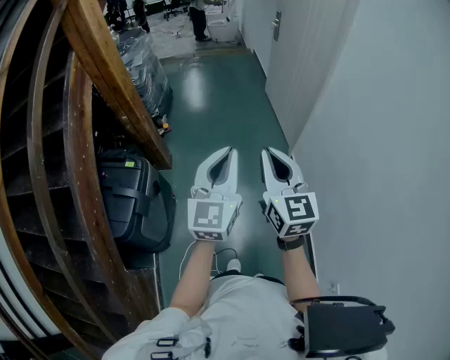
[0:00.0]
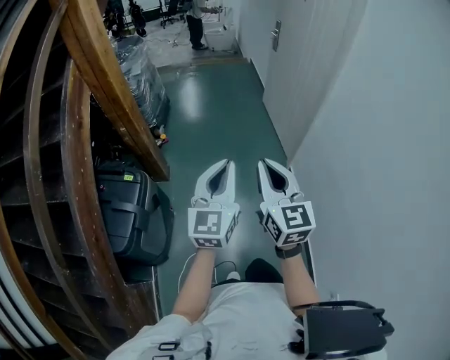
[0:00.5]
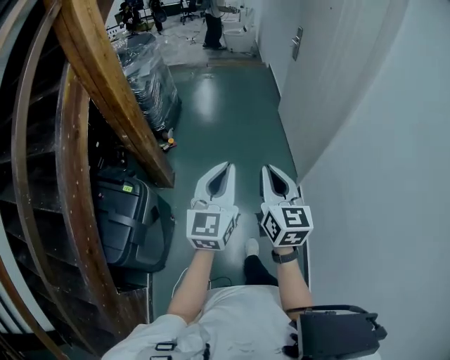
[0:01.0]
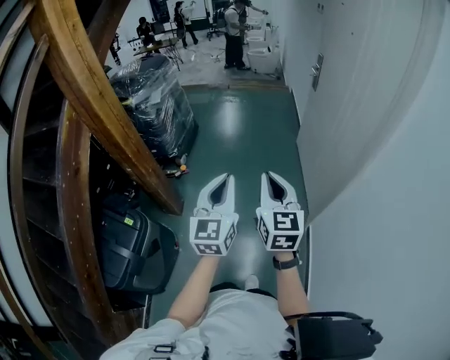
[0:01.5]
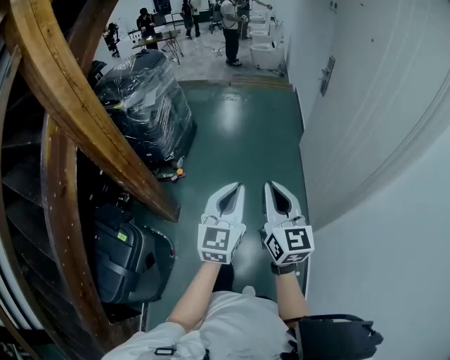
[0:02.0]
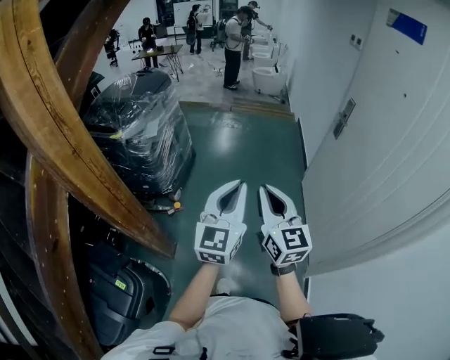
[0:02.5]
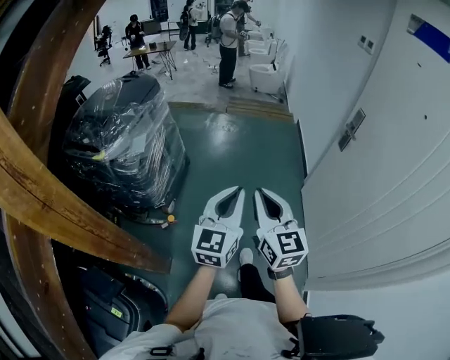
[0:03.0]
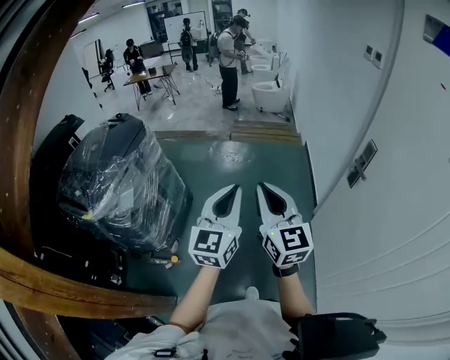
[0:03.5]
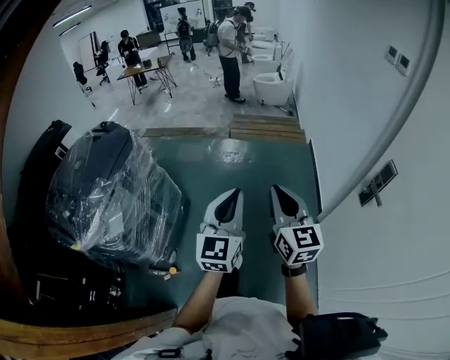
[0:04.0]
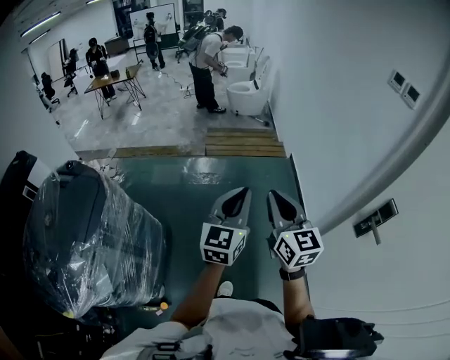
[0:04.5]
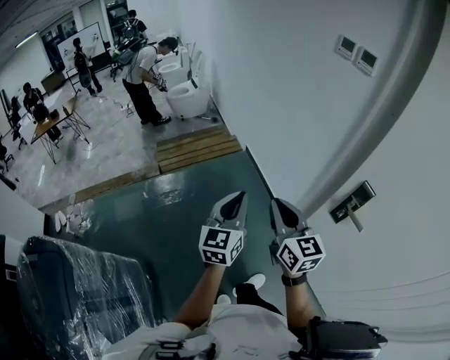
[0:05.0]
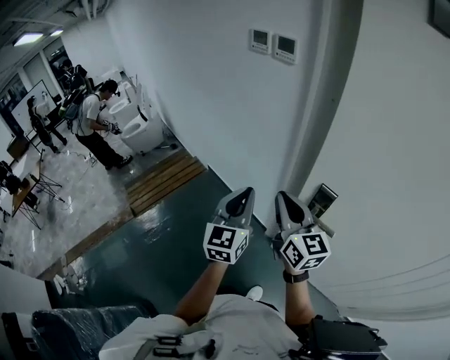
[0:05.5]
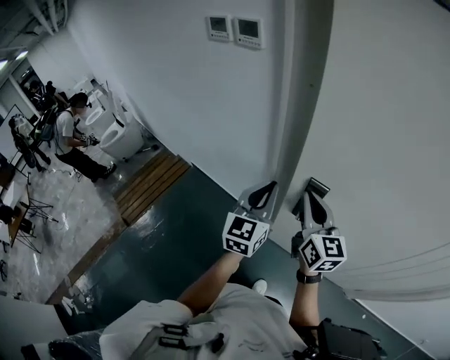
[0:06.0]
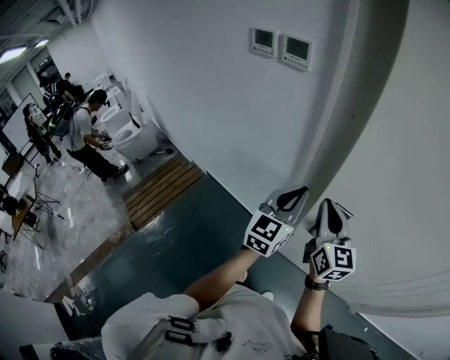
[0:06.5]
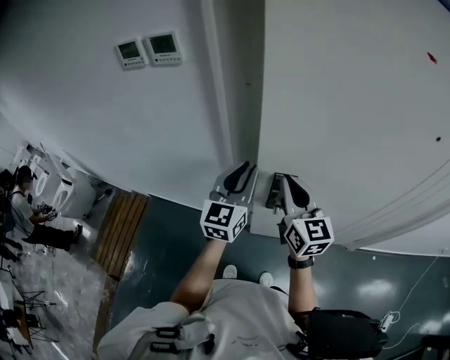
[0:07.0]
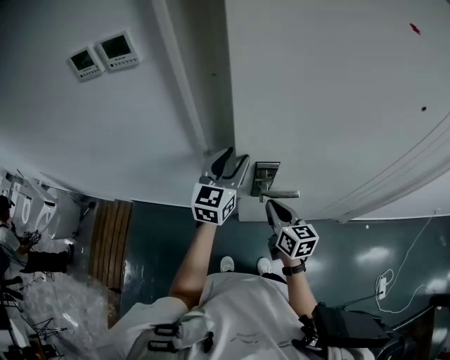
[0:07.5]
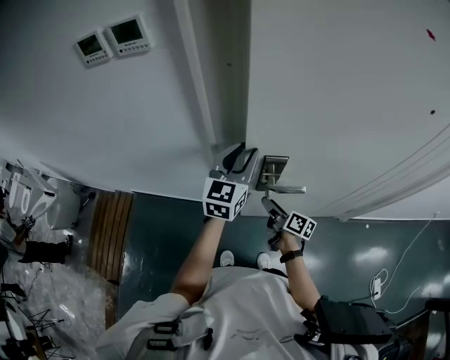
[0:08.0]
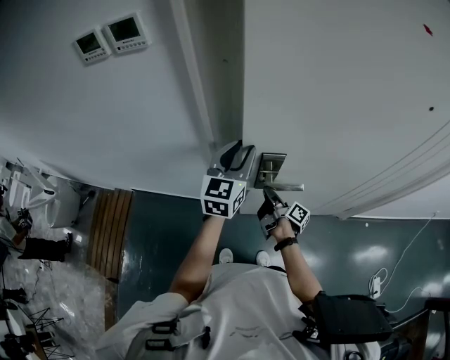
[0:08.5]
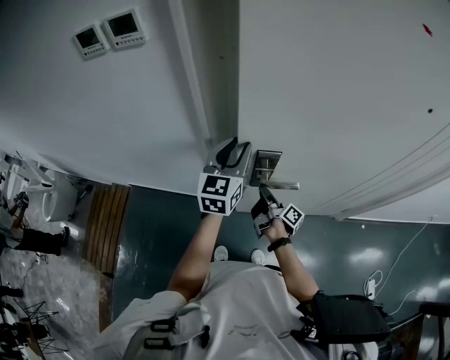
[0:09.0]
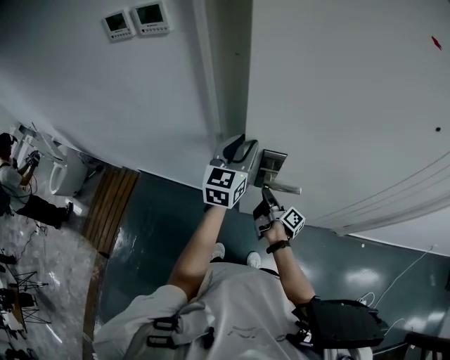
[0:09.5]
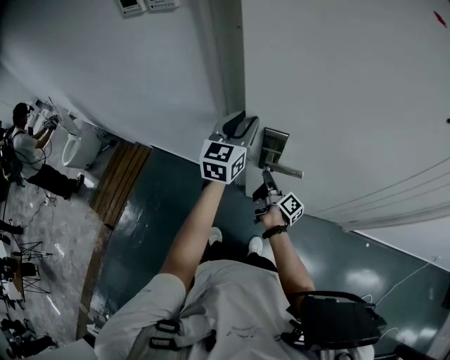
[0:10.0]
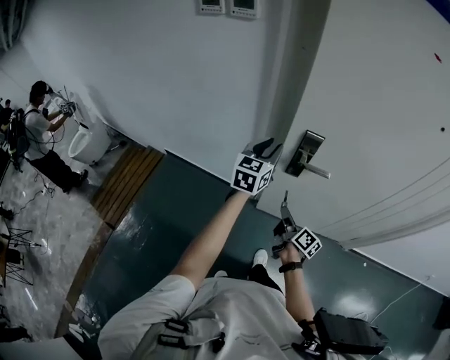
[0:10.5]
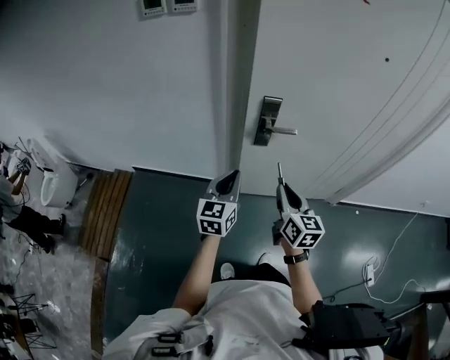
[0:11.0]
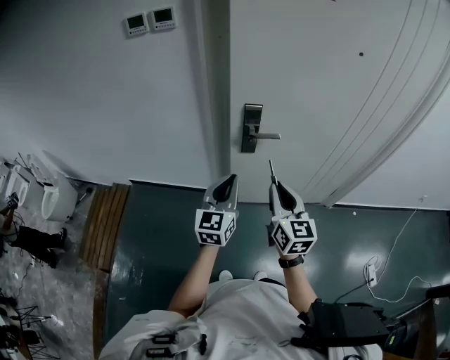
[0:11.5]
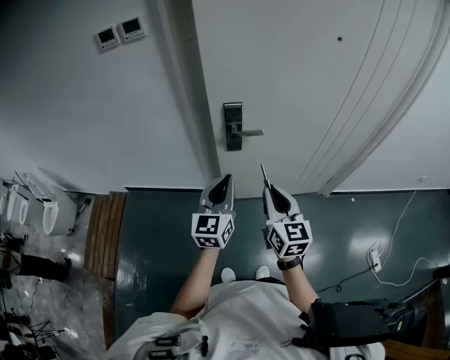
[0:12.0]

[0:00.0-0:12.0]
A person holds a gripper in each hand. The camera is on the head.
0:00.0 to 0:02.0: The pair of grippers is taken forward, about 50 cm.
0:02.0 to 0:04.0: The two grippers travel together, forward, approximately 70 cm.
0:04.0 to 0:06.0: The two grippers travel together, roughly 50 cm. The left gripper turns by approximately 70 degrees. Meanwhile the right gripper rotates some 60 degrees.
0:06.0 to 0:08.0: The left gripper heads forward and to the right, covering approximately 10 cm, changes its angle by approximately 30 degrees, and opens up. Meanwhile the right gripper goes some 25 cm downward, rolls clockwise, seen from behind, by roughly 50 degrees, and opens its fingers.
0:08.0 to 0:10.0: The right gripper changes its angle by some 20 degrees, and closes up.
0:10.0 to 0:12.0: The right gripper moves backward and upward, approximately 35 cm, and rotates around the line of its fingers by roughly 80 degrees, counterclockwise from behind, while the left gripper shifts some 30 cm backward, and closes up.

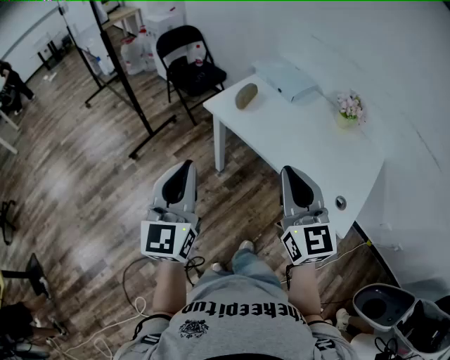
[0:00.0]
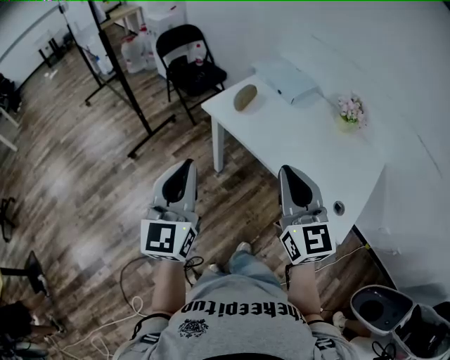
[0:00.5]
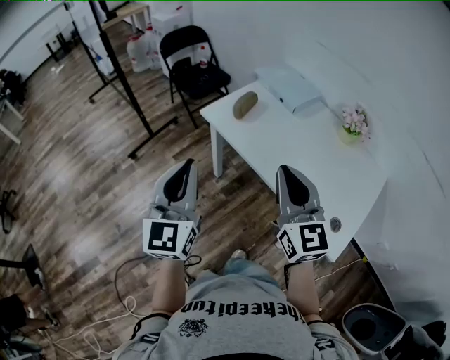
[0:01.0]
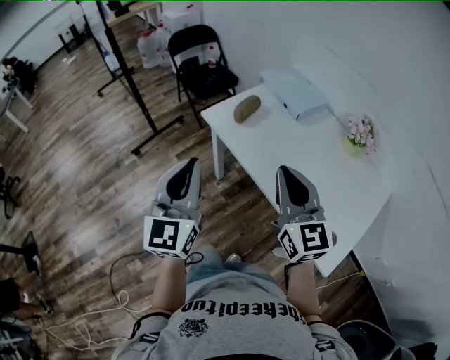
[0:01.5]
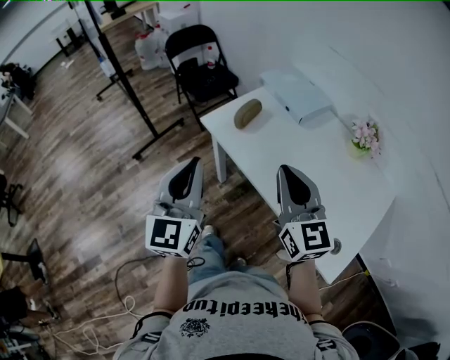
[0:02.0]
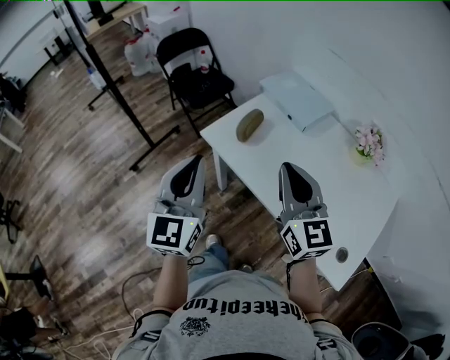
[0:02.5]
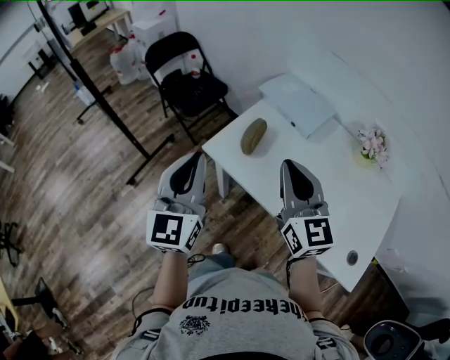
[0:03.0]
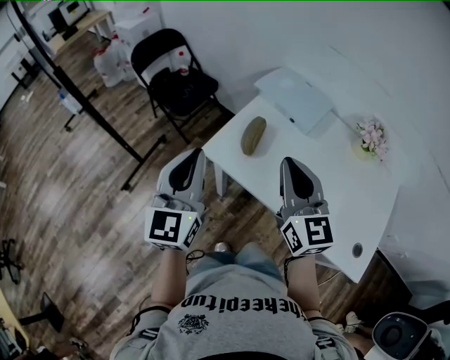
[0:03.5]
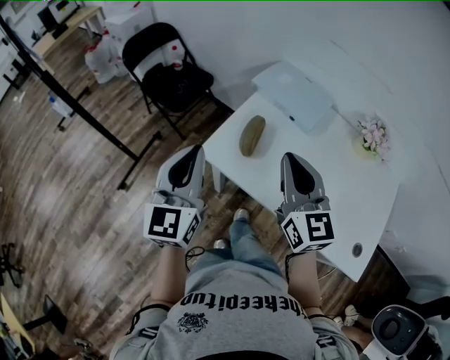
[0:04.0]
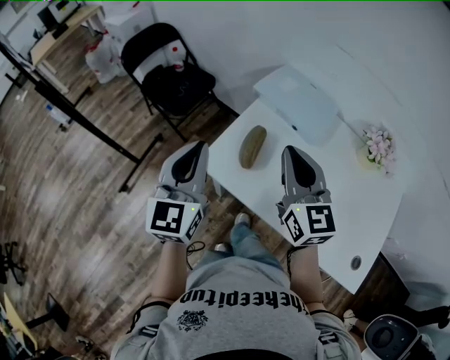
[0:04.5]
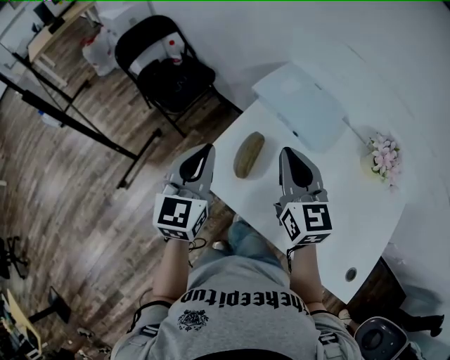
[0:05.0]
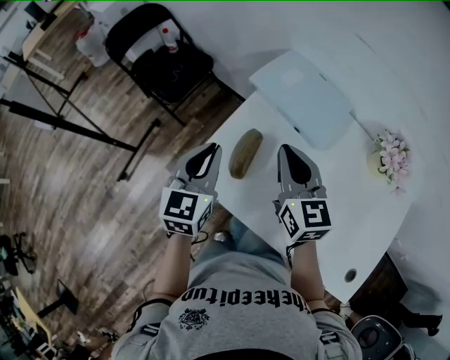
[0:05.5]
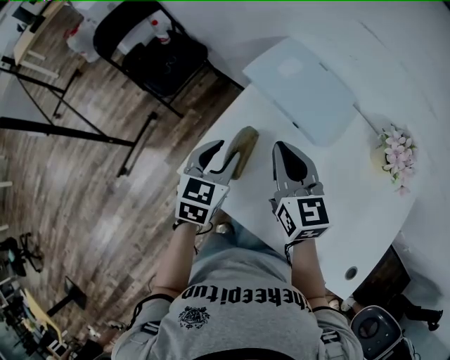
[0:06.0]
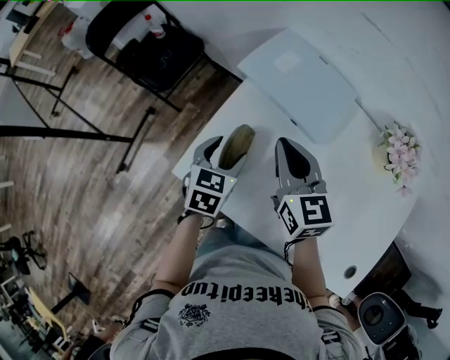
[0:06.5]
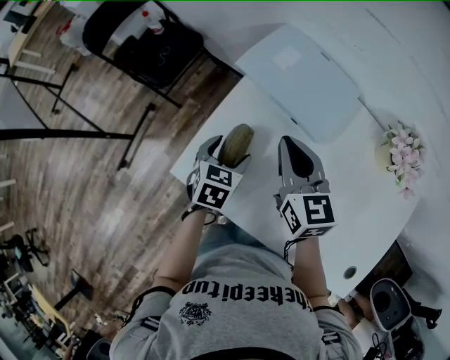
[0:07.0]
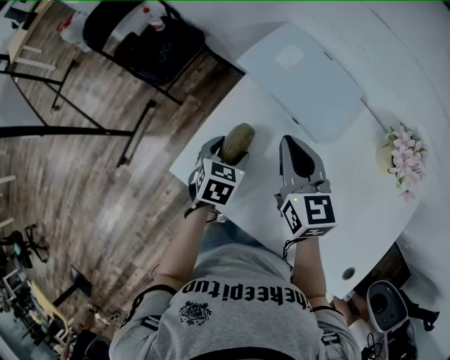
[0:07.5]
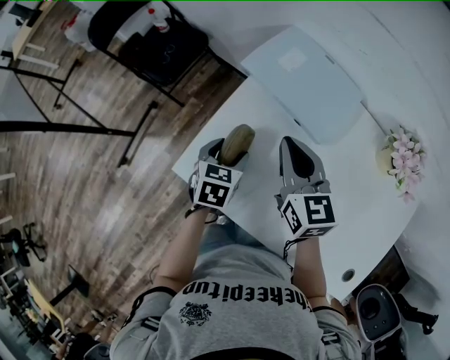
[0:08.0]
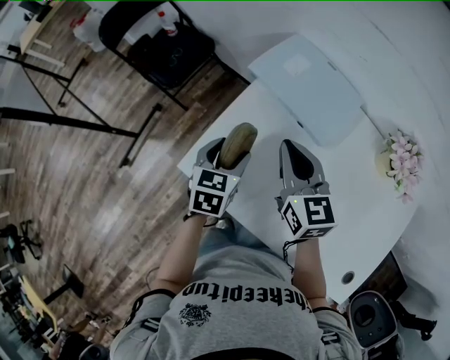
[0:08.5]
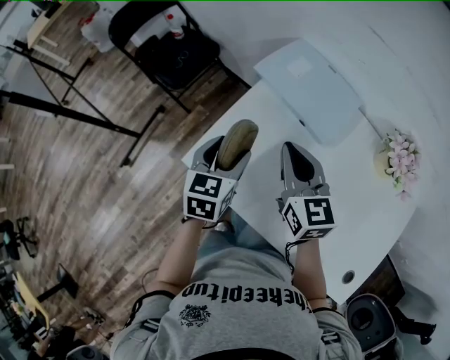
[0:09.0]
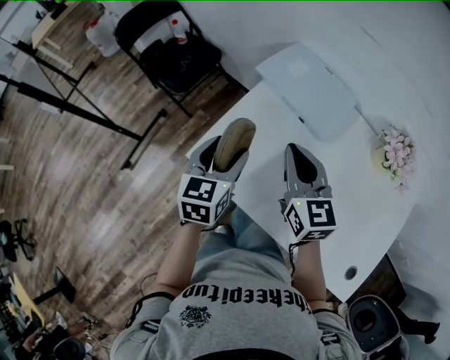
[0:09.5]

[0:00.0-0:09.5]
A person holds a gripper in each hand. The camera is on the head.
0:00.0 to 0:02.0: The grippers both shift forward and to the right by approximately 15 cm.
0:02.0 to 0:04.0: The left gripper moves forward, roughly 25 cm; the right gripper heads forward and to the left, covering some 20 cm.
0:04.0 to 0:05.5: The right gripper is displaced forward and downward by approximately 20 cm, while the left gripper heads forward, downward and to the right, covering roughly 20 cm, and rotates roughly 20 degrees.
0:05.5 to 0:07.5: The right gripper goes about 5 cm downward and forward; the left gripper travels downward and to the right by about 20 cm, points its fingers about 30 degrees further downward, and opens its fingers.
0:07.5 to 0:09.5: The left gripper heads upward and backward, covering some 15 cm, and turns by about 30 degrees; the right gripper goes some 10 cm backward.

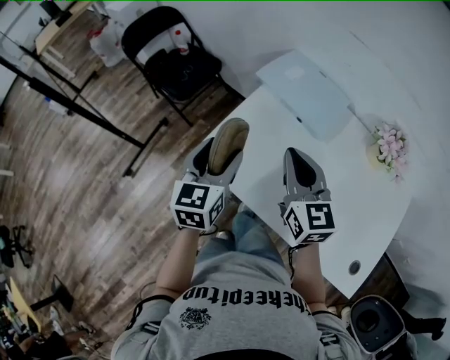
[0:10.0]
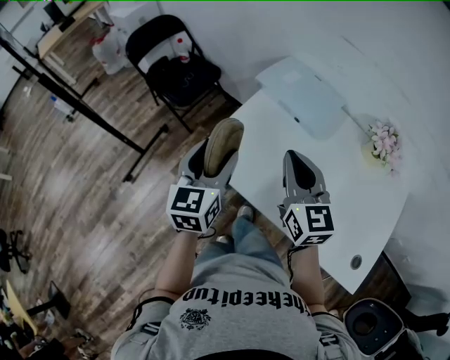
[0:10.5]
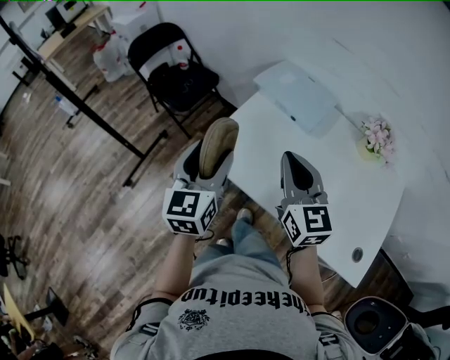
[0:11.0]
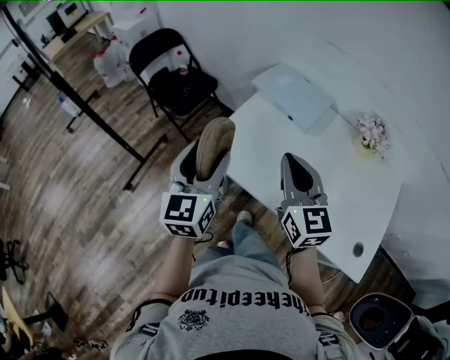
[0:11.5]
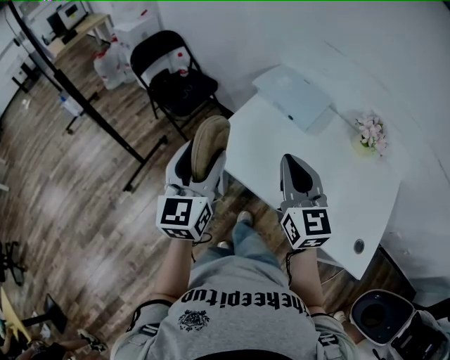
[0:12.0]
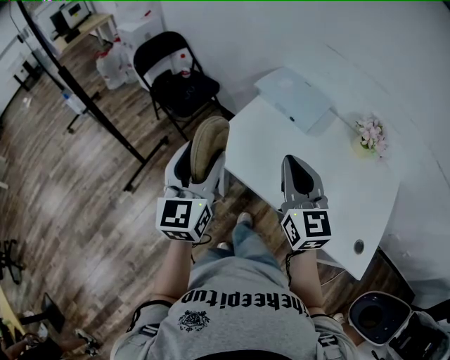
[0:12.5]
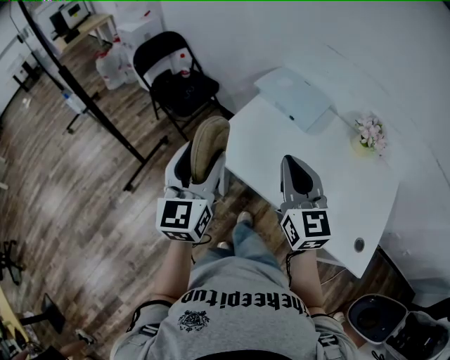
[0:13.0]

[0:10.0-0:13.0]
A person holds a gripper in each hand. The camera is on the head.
0:10.0 to 0:11.5: The left gripper travels backward and upward by some 15 cm, while the right gripper is displaced backward by roughly 10 cm.
0:11.5 to 0:13.0: The left gripper ends up about 5 cm from where it was.

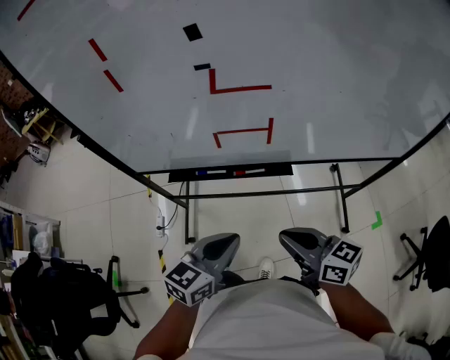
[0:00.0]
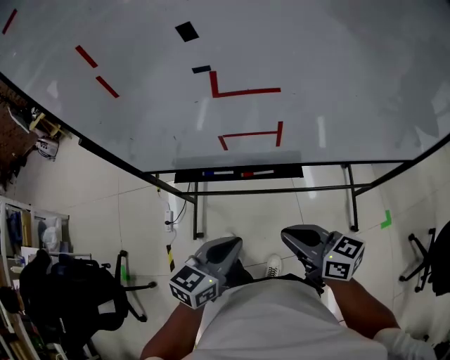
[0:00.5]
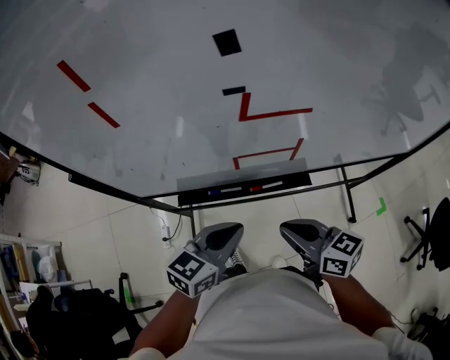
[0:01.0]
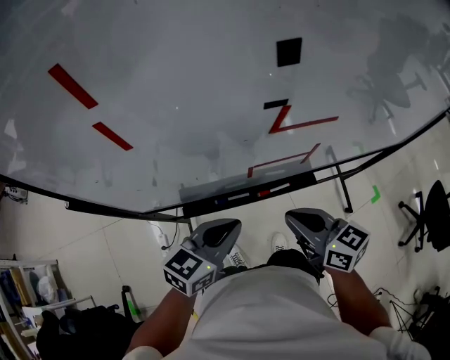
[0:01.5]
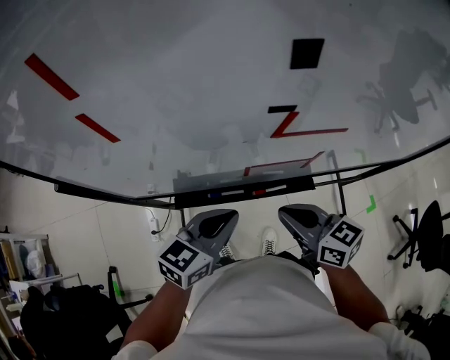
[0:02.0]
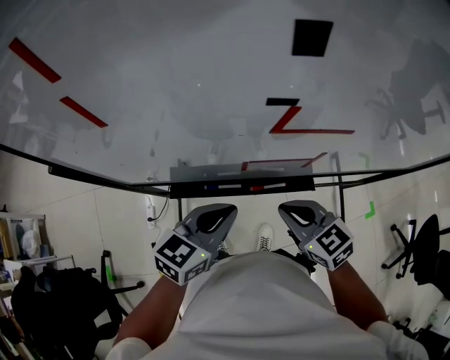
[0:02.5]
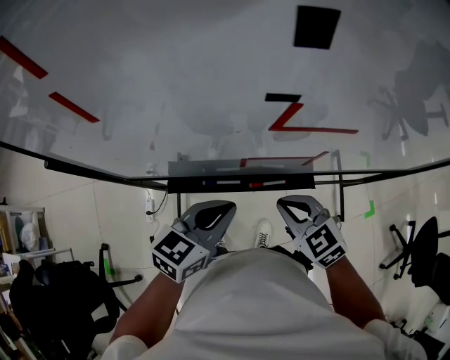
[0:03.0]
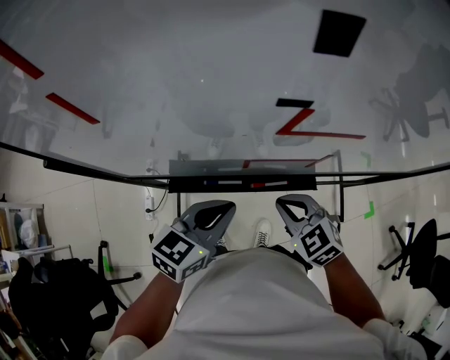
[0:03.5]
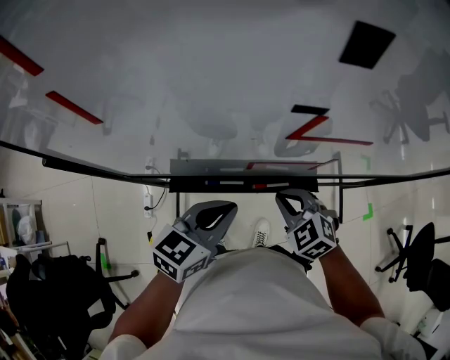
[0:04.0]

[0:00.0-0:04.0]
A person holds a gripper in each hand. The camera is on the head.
0:00.0 to 0:02.0: The grippers both shift forward and to the left by roughly 20 cm.
0:02.0 to 0:04.0: The right gripper is displaced downward by roughly 10 cm, and twists some 40 degrees counterclockwise, seen from behind.
